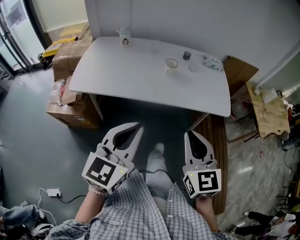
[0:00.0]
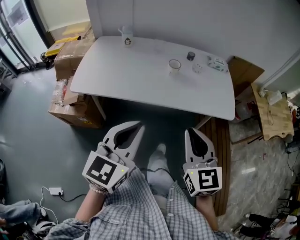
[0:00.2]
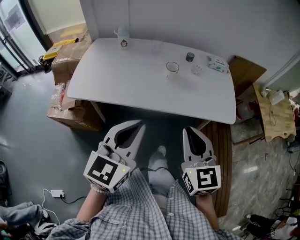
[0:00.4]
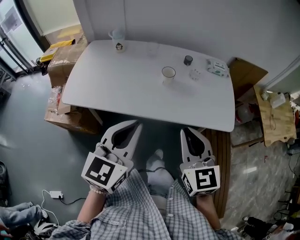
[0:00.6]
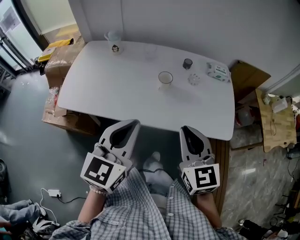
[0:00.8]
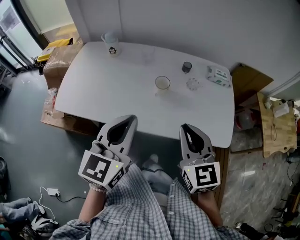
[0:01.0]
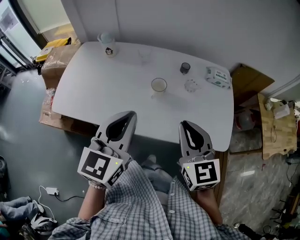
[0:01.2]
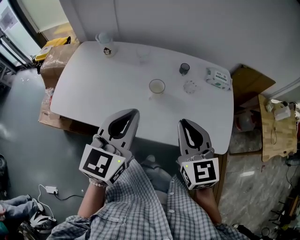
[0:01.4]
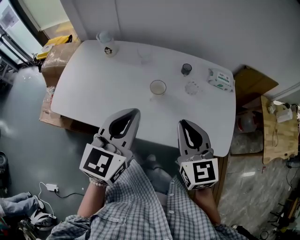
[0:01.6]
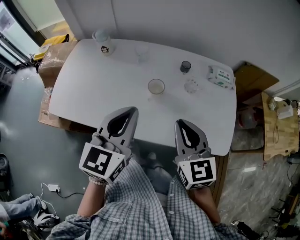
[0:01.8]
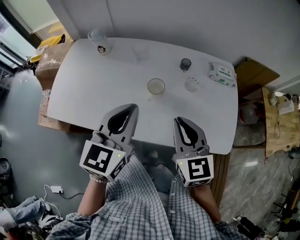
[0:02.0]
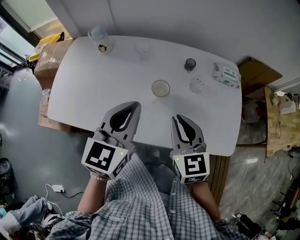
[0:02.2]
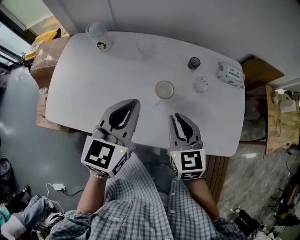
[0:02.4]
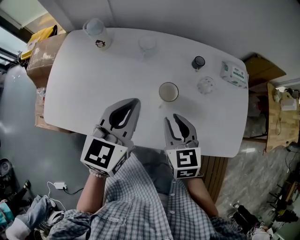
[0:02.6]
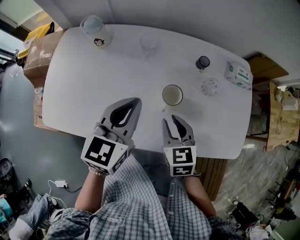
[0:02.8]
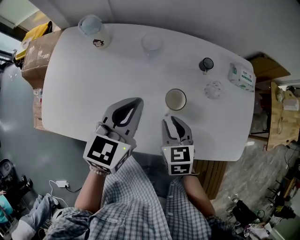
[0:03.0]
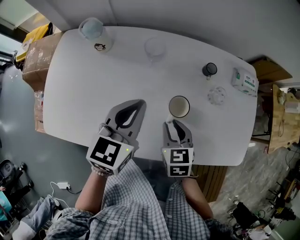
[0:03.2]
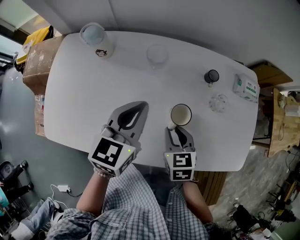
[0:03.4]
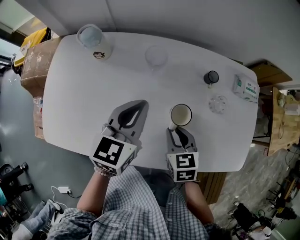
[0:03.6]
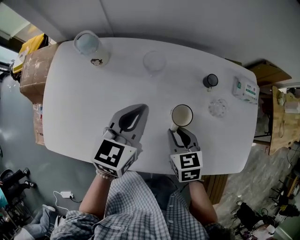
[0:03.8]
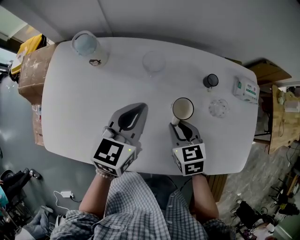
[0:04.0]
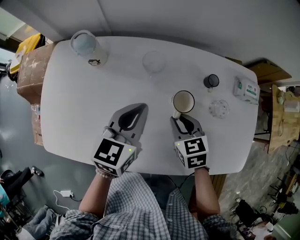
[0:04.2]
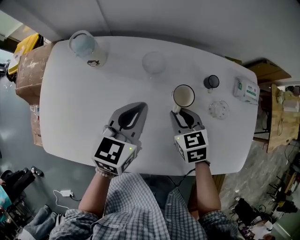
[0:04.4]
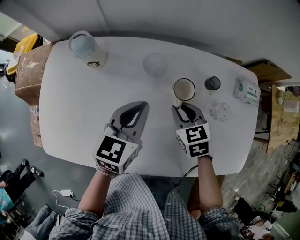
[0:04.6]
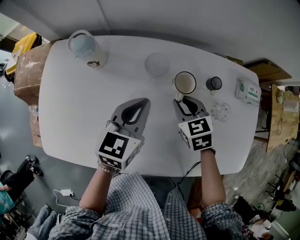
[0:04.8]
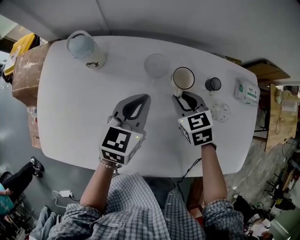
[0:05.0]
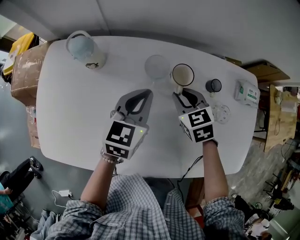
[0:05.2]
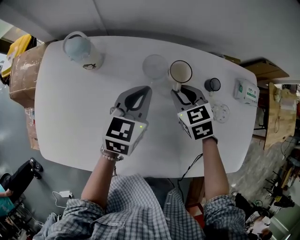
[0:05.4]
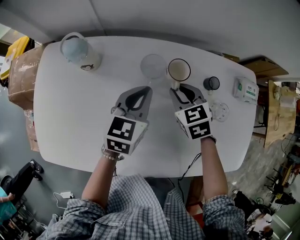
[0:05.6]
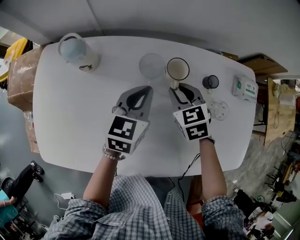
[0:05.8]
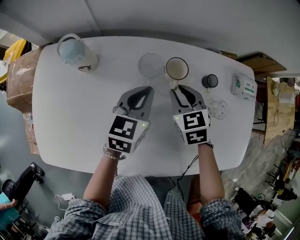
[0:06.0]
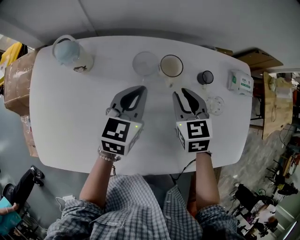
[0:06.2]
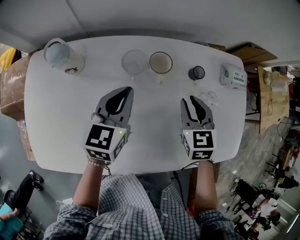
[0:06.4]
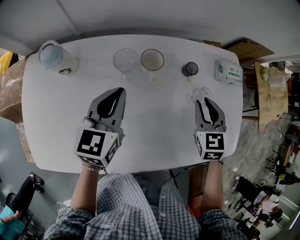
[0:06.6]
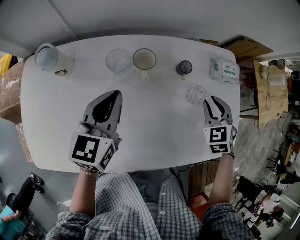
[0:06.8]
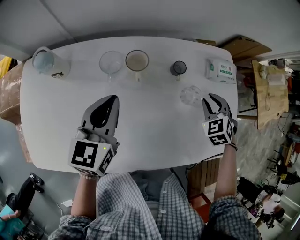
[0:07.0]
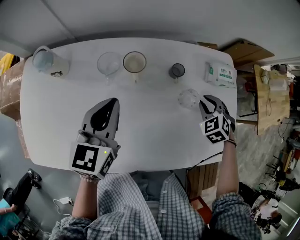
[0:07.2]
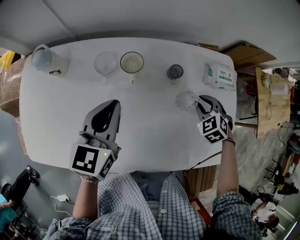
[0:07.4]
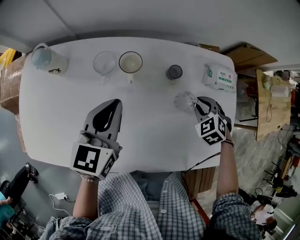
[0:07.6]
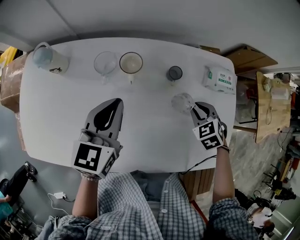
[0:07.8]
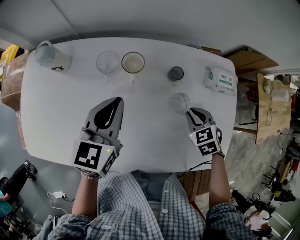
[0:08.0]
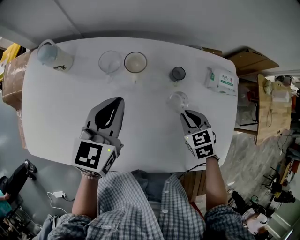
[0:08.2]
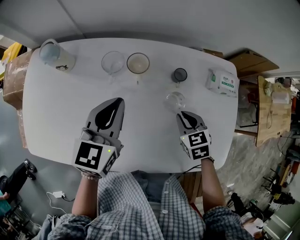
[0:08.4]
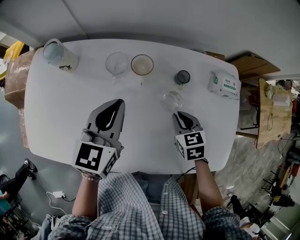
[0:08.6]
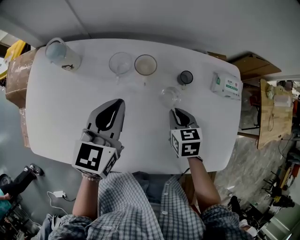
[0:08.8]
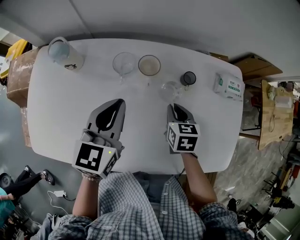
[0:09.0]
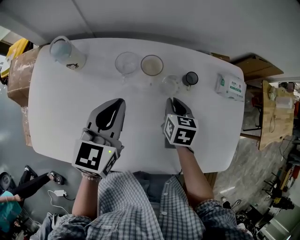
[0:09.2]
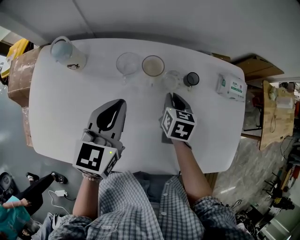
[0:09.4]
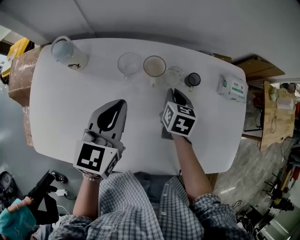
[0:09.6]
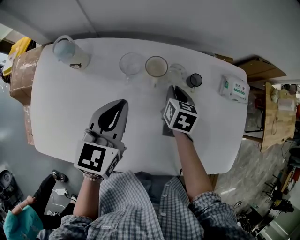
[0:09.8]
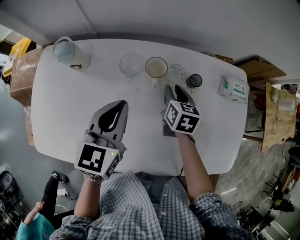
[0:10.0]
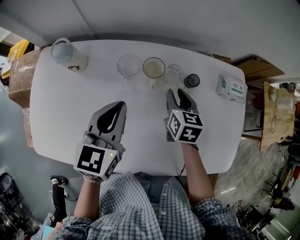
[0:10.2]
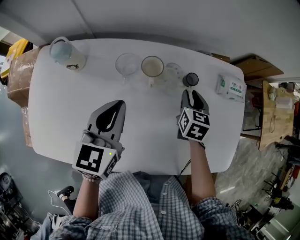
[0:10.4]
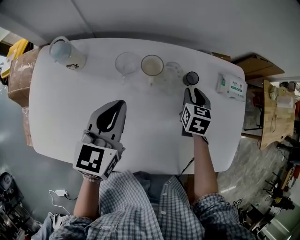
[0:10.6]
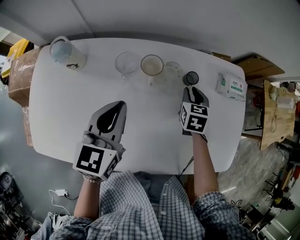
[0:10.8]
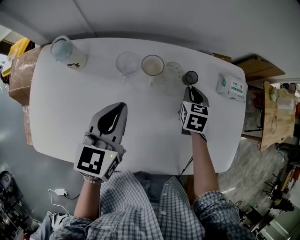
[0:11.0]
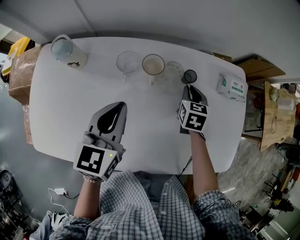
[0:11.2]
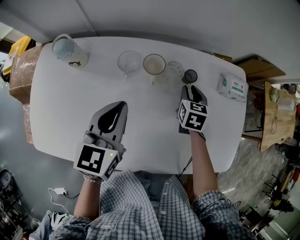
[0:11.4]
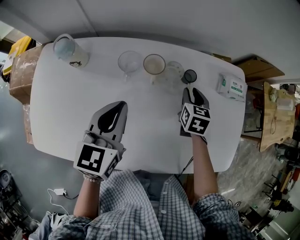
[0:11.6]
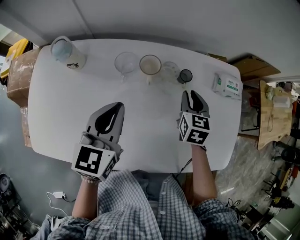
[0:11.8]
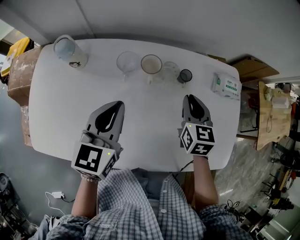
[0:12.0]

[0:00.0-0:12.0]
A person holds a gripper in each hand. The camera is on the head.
0:00.0 to 0:01.6: Both grippers travel together forward, approximately 30 cm.
0:01.6 to 0:03.0: The left gripper travels forward, downward and to the left by about 20 cm; the right gripper shifts roughly 25 cm downward, to the left and forward, and turns by about 30 degrees.
0:03.0 to 0:04.4: Both grippers travel together forward, approximately 10 cm.
0:04.4 to 0:06.0: The right gripper shifts some 10 cm forward. Meanwhile the left gripper is displaced forward and downward by approximately 10 cm.
0:06.0 to 0:07.6: The right gripper moves to the right, about 25 cm, and changes its angle by roughly 30 degrees. Meanwhile the left gripper heads upward and to the right, covering some 10 cm.
0:07.6 to 0:09.0: The right gripper moves to the left, roughly 15 cm, and rolls clockwise, seen from behind, by roughly 50 degrees.
0:09.0 to 0:10.4: The right gripper shifts some 5 cm forward.
0:10.4 to 0:12.0: The right gripper goes some 5 cm upward.

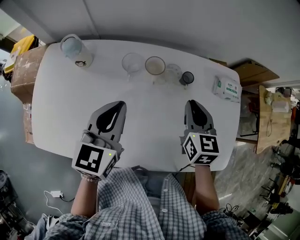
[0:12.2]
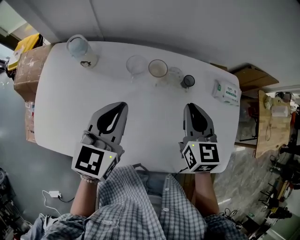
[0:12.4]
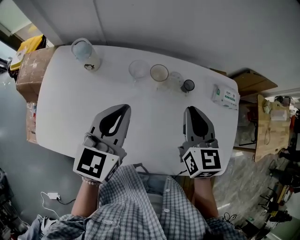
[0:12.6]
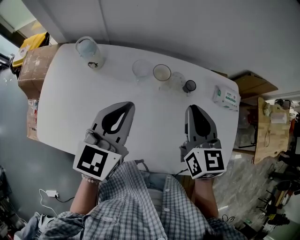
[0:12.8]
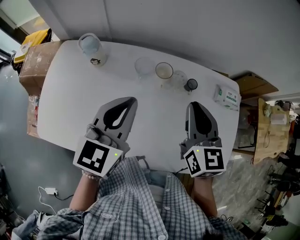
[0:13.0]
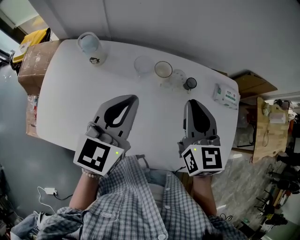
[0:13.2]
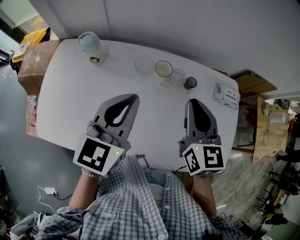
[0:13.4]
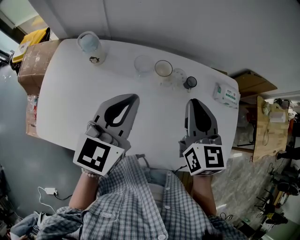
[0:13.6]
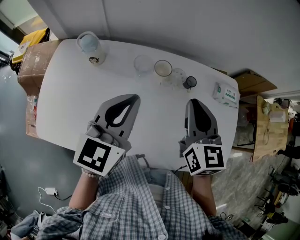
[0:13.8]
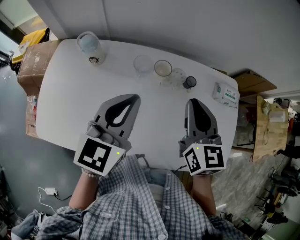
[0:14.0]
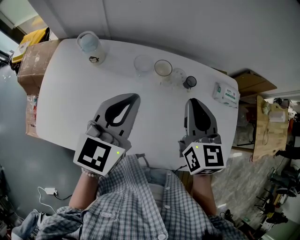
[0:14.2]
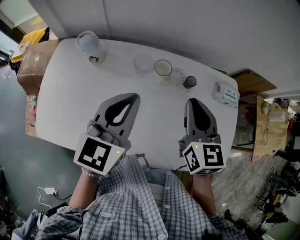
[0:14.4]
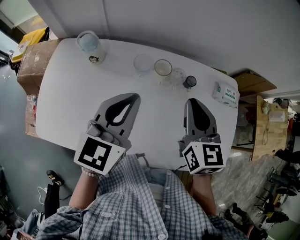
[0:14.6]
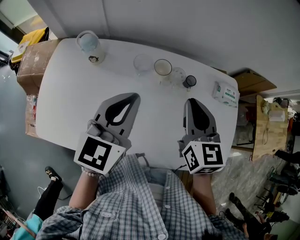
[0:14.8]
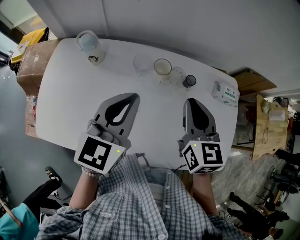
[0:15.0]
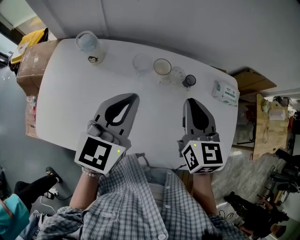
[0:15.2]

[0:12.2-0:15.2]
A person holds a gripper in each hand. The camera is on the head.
0:12.2 to 0:13.8: The left gripper is displaced upward by approximately 5 cm, while the right gripper goes approximately 10 cm upward and to the left.
0:13.8 to 0:15.2: Neither gripper changes place.

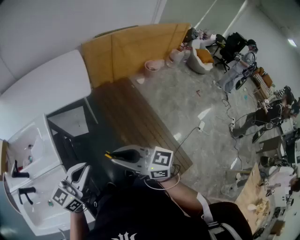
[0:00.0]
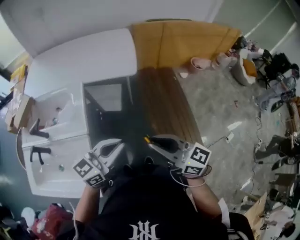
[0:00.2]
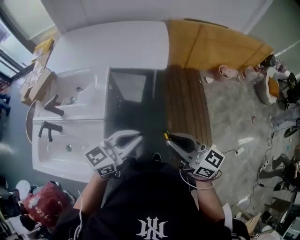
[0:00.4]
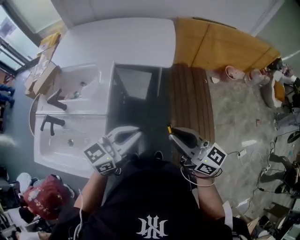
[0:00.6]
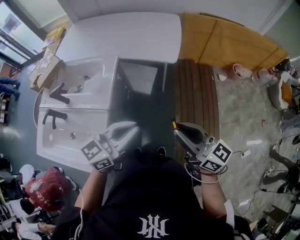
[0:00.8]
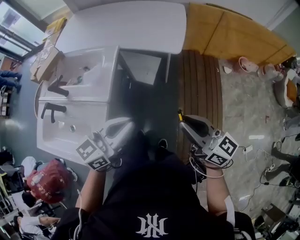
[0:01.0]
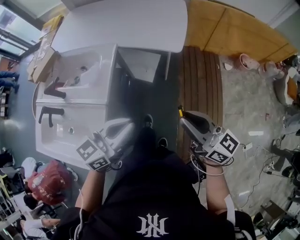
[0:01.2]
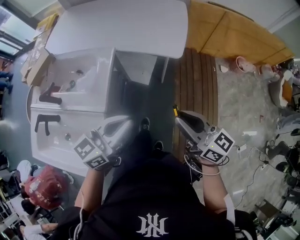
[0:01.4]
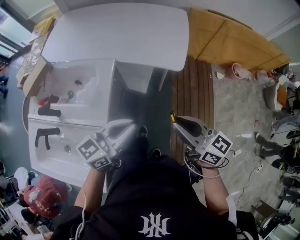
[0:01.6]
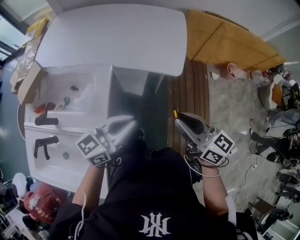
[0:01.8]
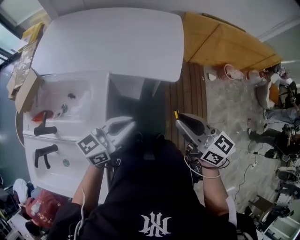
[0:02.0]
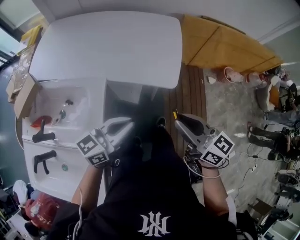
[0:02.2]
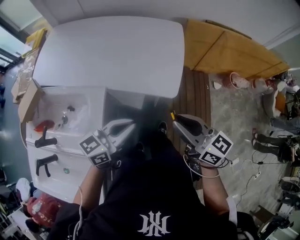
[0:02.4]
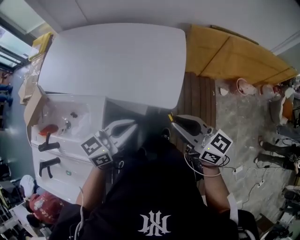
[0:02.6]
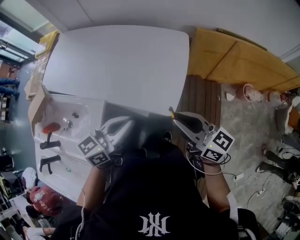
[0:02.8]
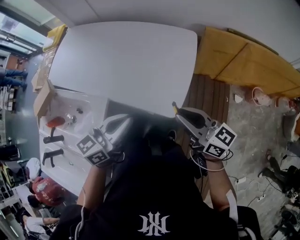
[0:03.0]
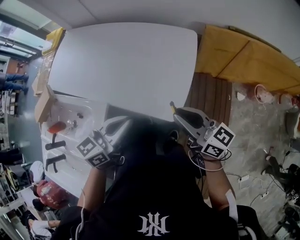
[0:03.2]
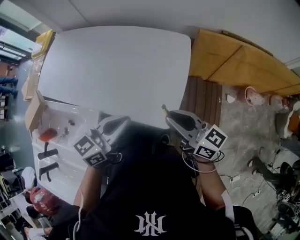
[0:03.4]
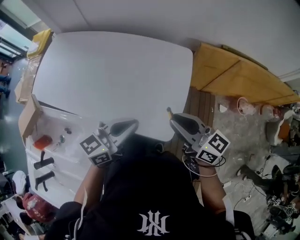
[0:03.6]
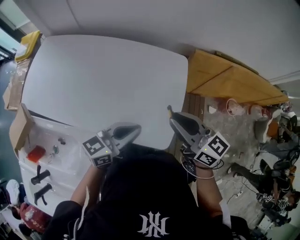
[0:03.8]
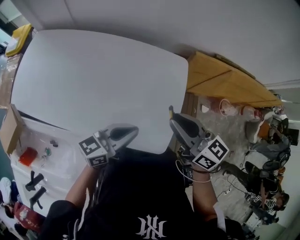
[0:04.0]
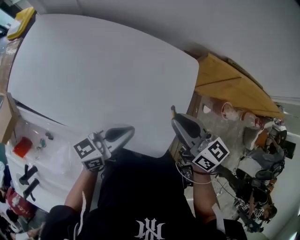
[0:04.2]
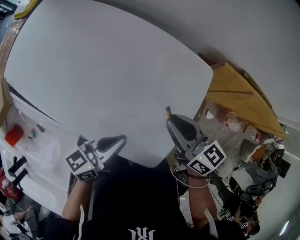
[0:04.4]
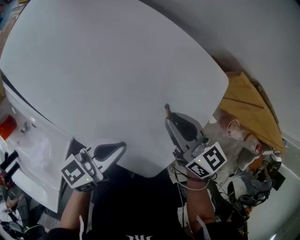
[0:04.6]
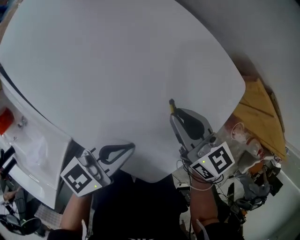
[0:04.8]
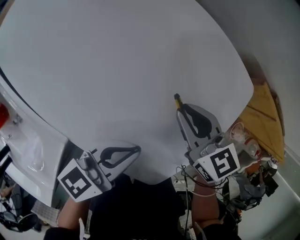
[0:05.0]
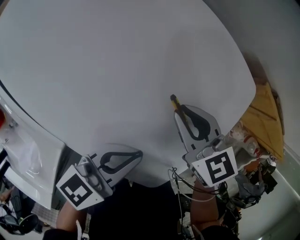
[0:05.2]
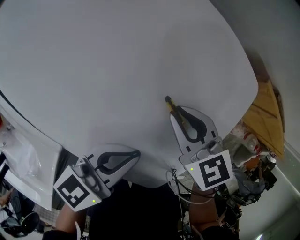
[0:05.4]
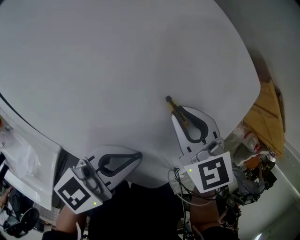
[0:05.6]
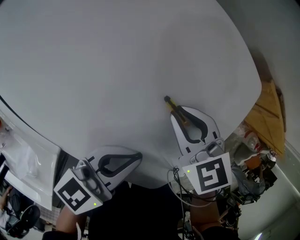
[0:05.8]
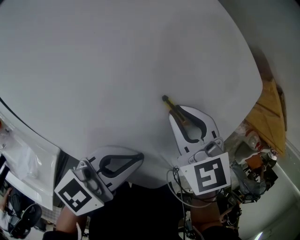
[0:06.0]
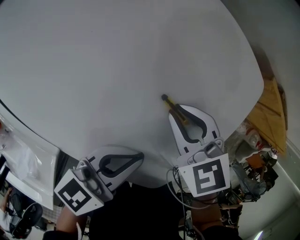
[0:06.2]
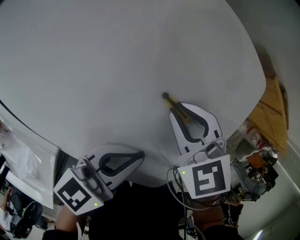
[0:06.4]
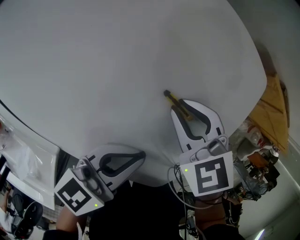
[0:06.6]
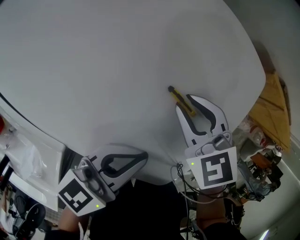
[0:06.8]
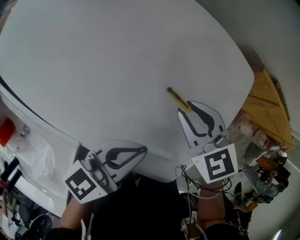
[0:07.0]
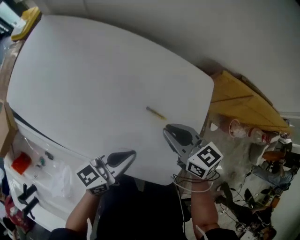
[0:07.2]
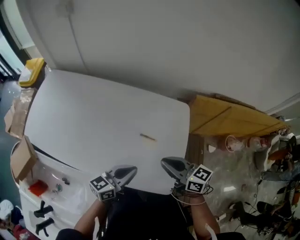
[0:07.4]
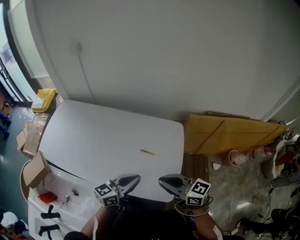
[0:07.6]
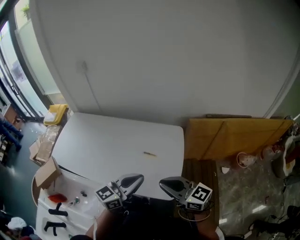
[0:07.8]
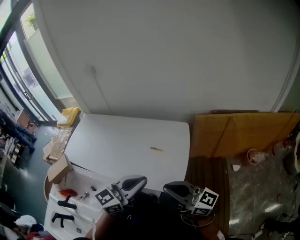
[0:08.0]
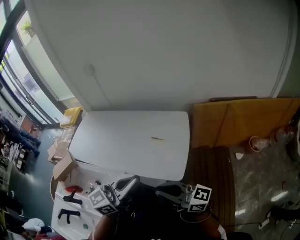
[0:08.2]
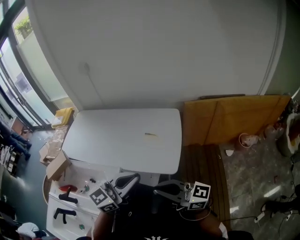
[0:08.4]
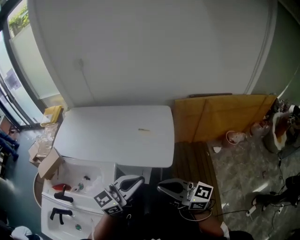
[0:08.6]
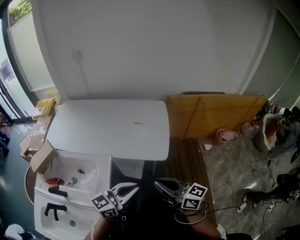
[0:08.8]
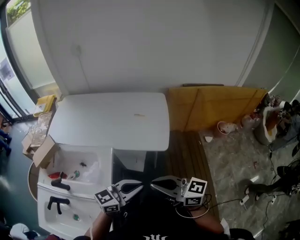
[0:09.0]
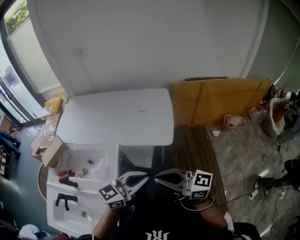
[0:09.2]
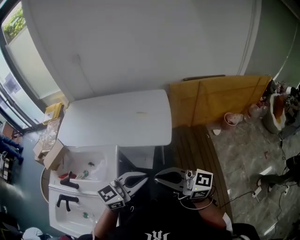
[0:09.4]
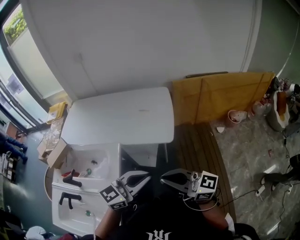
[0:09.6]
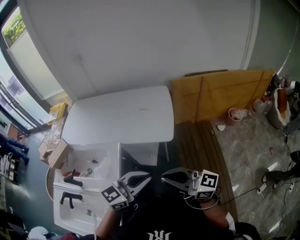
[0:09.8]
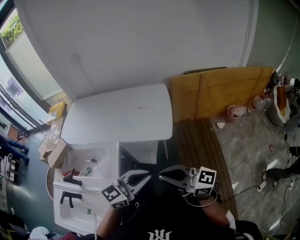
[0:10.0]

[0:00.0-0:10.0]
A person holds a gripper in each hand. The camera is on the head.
0:00.0 to 0:01.4: Both grippers travel together forward and downward, approximately 20 cm.
0:01.4 to 0:02.8: Both grippers move forward, approximately 35 cm.
0:02.8 to 0:04.2: The right gripper travels forward by approximately 30 cm. Meanwhile the left gripper is displaced forward and downward by approximately 25 cm.
0:04.2 to 0:05.8: The right gripper moves downward, approximately 25 cm, and turns by about 40 degrees. Meanwhile the left gripper moves downward, approximately 15 cm.
0:05.8 to 0:07.2: The right gripper travels upward by approximately 15 cm, and turns by roughly 30 degrees; the left gripper shifts approximately 10 cm upward.
0:07.2 to 0:08.6: The two grippers go some 50 cm backward and upward. The right gripper angles its fingers upward, by roughly 40 degrees. The left gripper changes its angle by roughly 30 degrees.
0:08.6 to 0:10.0: The right gripper changes place by roughly 15 cm; the left gripper moves approximately 15 cm.
